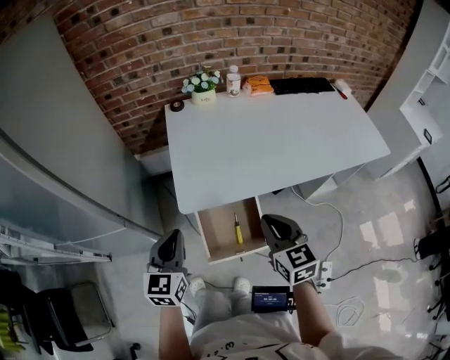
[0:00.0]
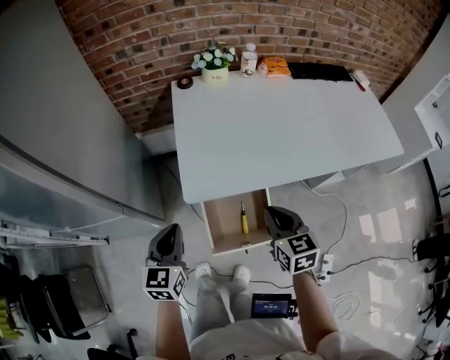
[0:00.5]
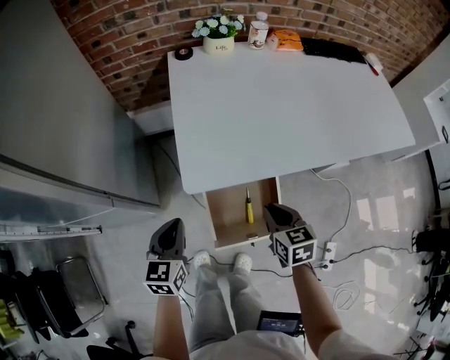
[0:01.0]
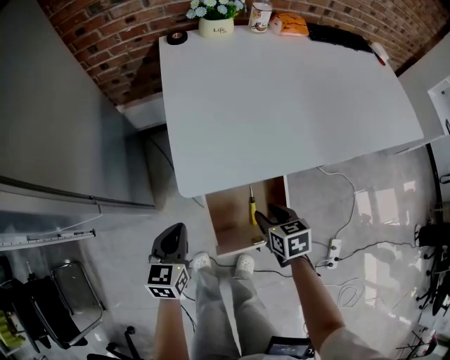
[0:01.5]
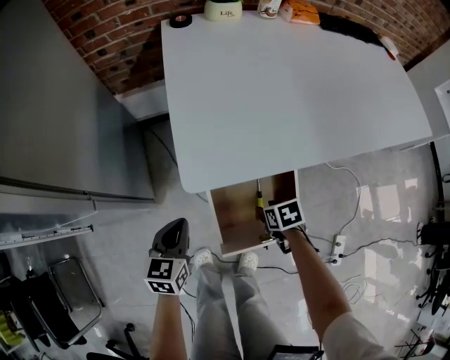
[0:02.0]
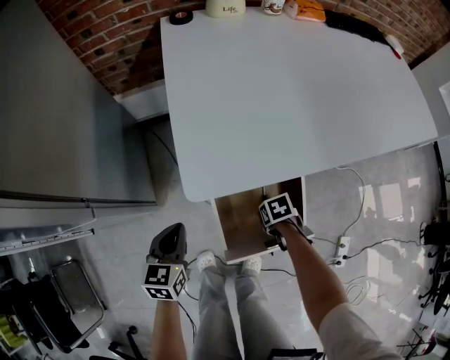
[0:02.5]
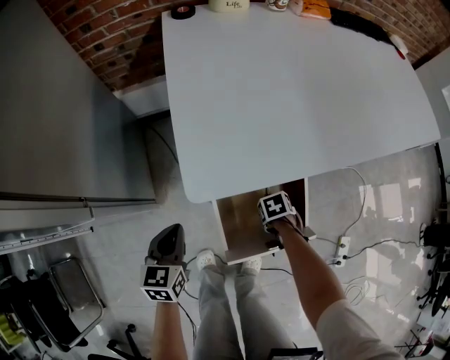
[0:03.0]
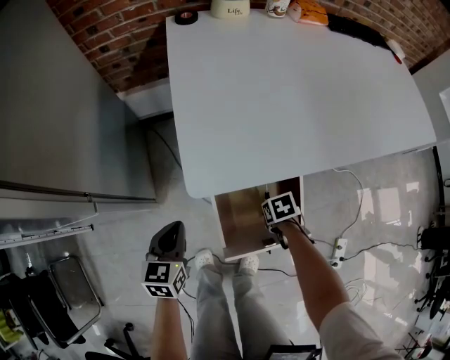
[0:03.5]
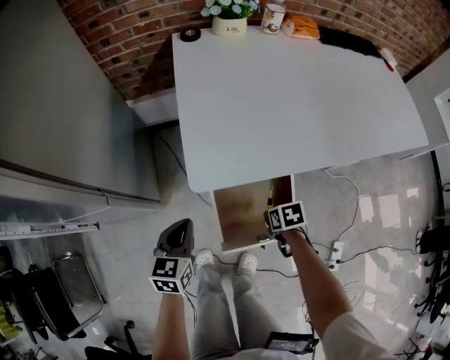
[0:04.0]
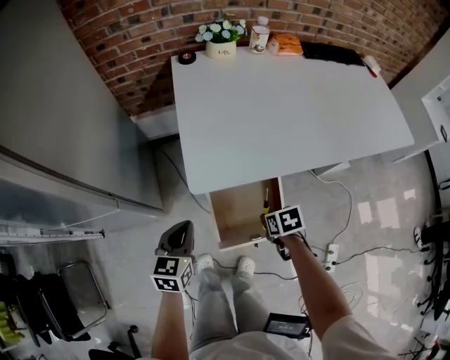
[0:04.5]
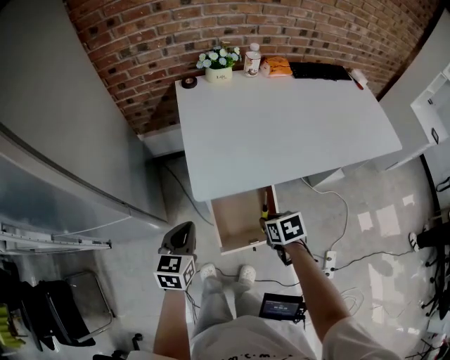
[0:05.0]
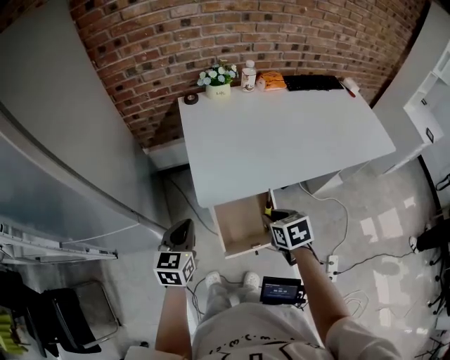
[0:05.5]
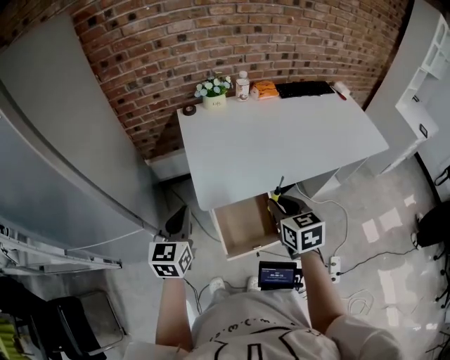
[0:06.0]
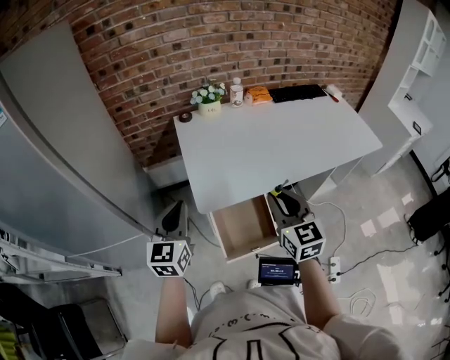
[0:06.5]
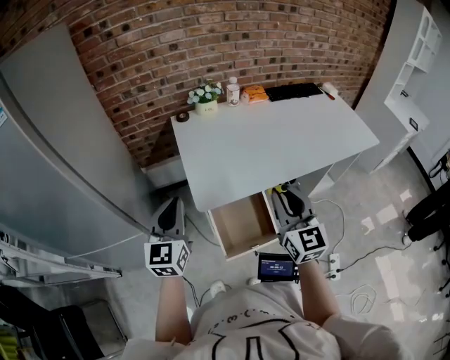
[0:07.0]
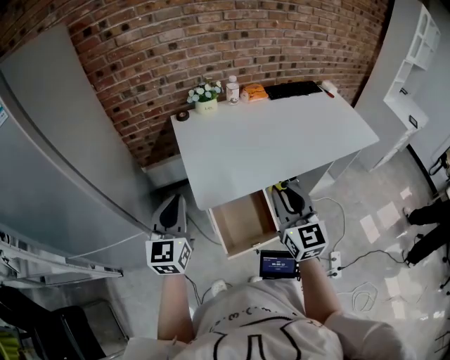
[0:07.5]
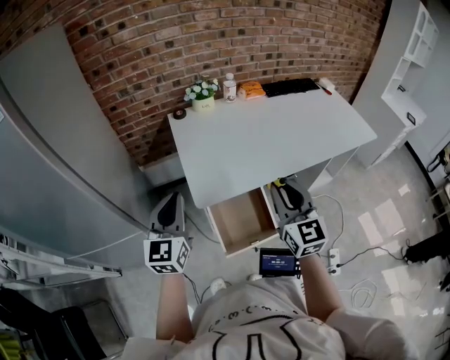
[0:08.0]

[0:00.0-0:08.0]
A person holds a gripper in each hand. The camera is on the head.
0:00.0 to 0:02.0: Both grippers travel together downward, some 35 cm. The left gripper swivels approximately 20 degrees; the right gripper tilts its fingers approximately 50 degrees downward, and opens up.
0:02.0 to 0:04.0: The left gripper changes place by approximately 5 cm. The right gripper reaches about 10 cm downward, then returns.
0:04.0 to 0:06.0: Both grippers move upward, approximately 35 cm. The left gripper changes its angle by some 20 degrees, while the right gripper points its fingers some 40 degrees further upward.
0:06.0 to 0:08.0: The two grippers go approximately 10 cm upward. The right gripper changes its angle by about 30 degrees.

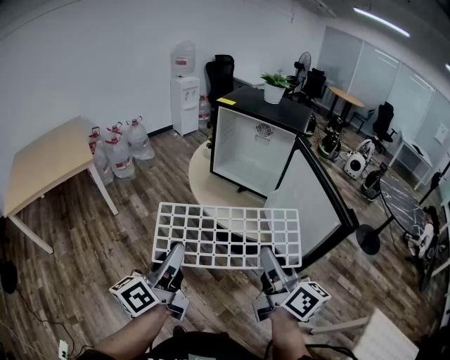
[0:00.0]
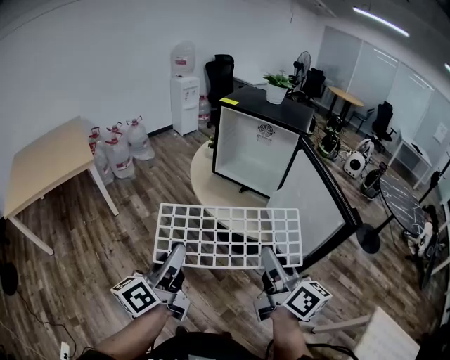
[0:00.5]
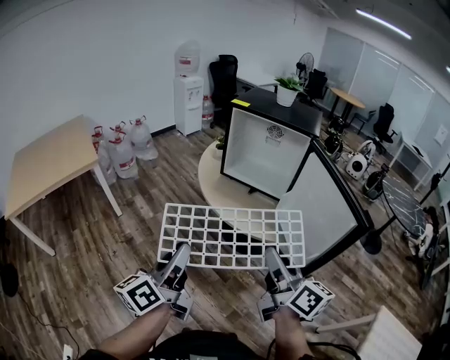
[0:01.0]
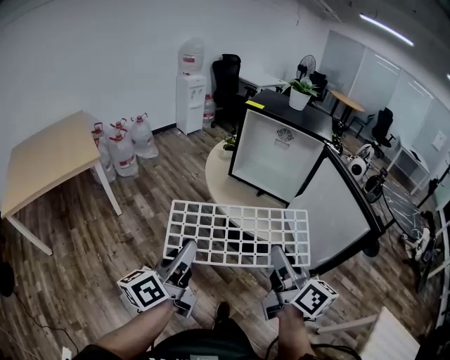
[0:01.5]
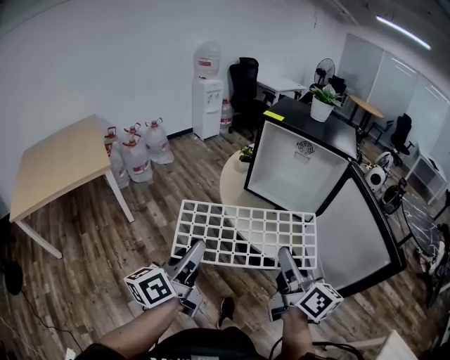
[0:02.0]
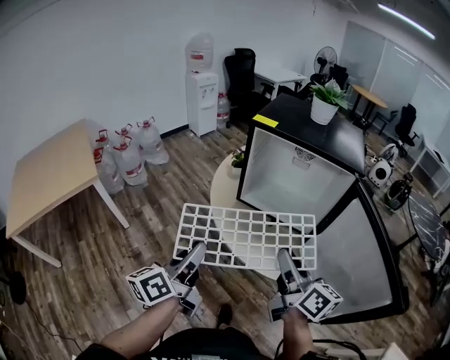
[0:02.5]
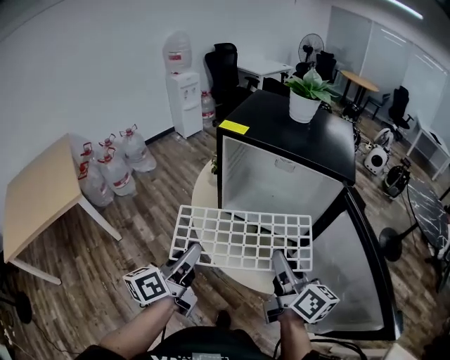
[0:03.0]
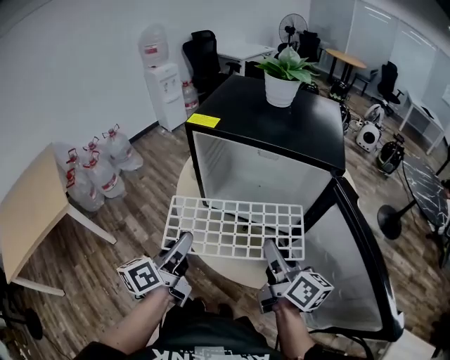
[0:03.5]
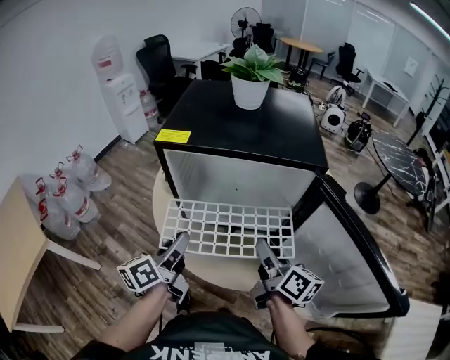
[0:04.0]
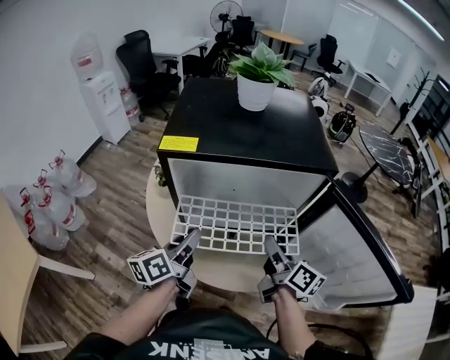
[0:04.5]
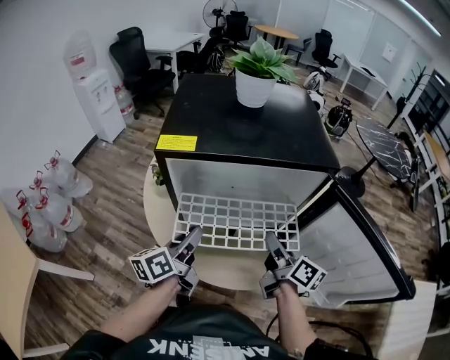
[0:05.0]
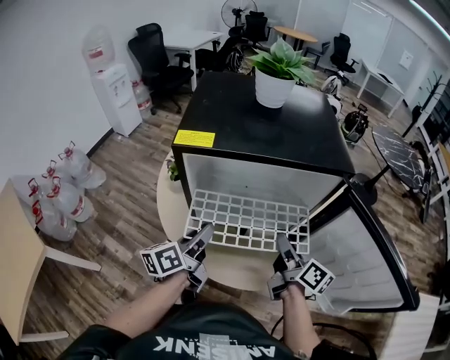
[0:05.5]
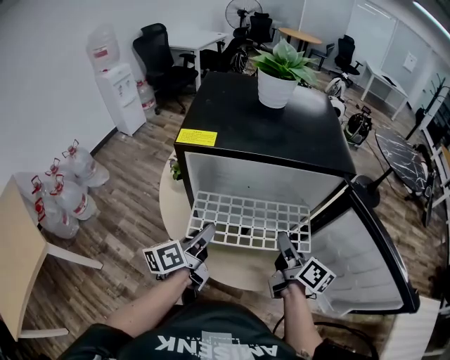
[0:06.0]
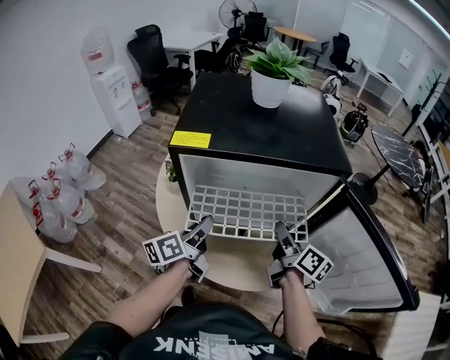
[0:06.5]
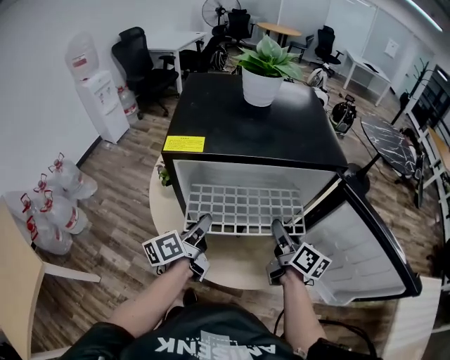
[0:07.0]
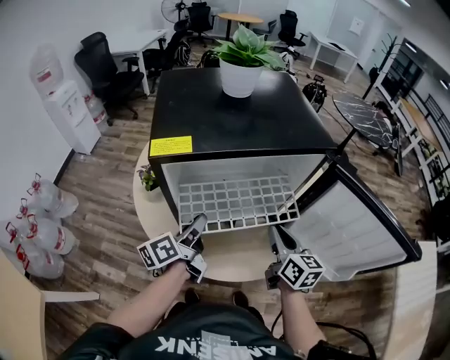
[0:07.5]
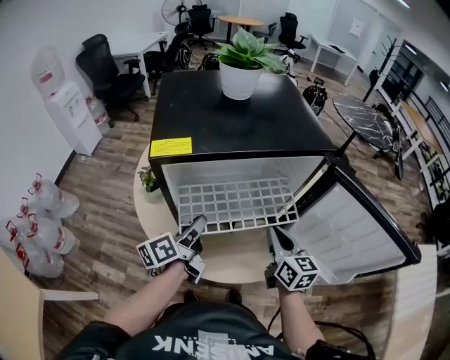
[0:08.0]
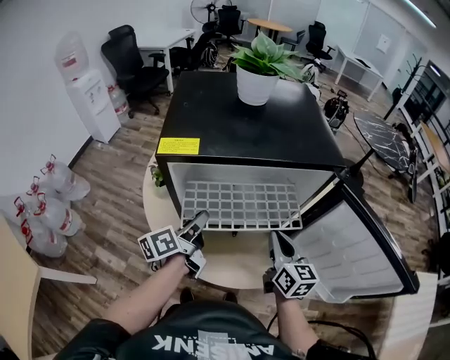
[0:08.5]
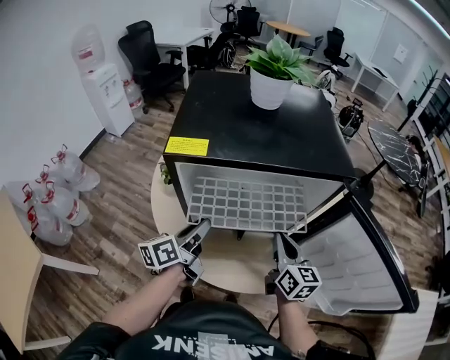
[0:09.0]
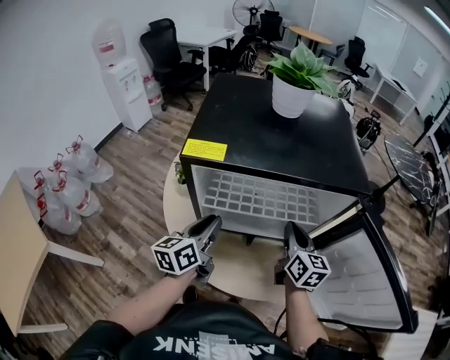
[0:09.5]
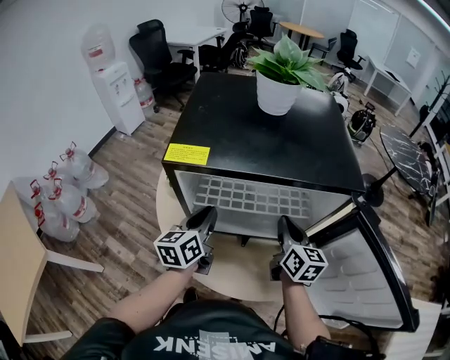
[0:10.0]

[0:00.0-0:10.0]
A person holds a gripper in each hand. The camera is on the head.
0:00.0 to 0:02.0: The two grippers go approximately 15 cm forward and to the left.
0:02.0 to 0:04.0: The left gripper moves forward, some 35 cm, and swivels approximately 20 degrees. Meanwhile the right gripper goes about 30 cm forward and to the right, and swivels some 20 degrees.
0:04.0 to 0:06.0: The right gripper changes place by roughly 5 cm; the left gripper moves forward, some 5 cm.
0:06.0 to 0:08.0: The right gripper changes its angle by roughly 30 degrees.
0:08.0 to 0:10.0: The right gripper goes about 10 cm forward, while the left gripper shifts some 5 cm forward, and turns by about 40 degrees.

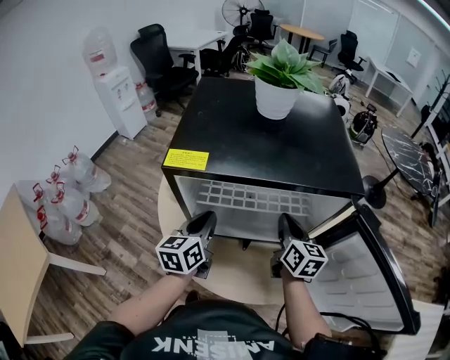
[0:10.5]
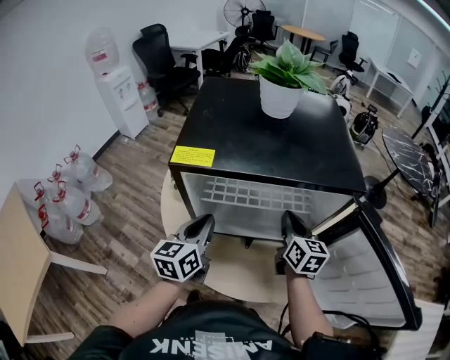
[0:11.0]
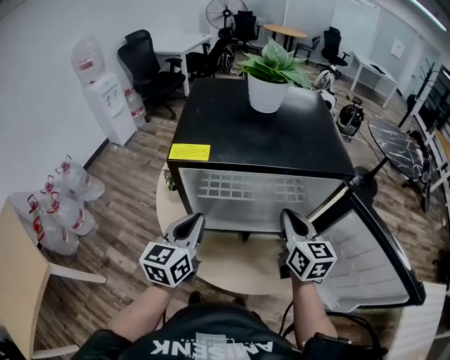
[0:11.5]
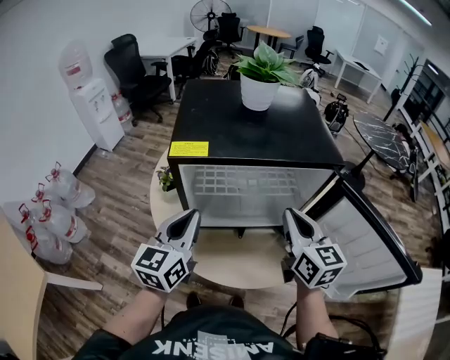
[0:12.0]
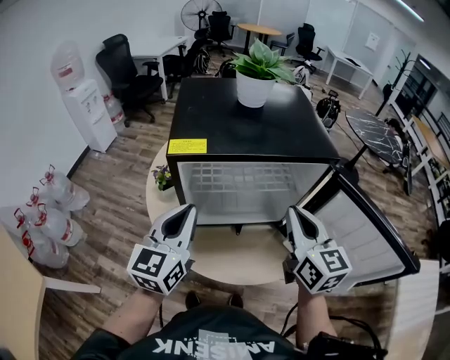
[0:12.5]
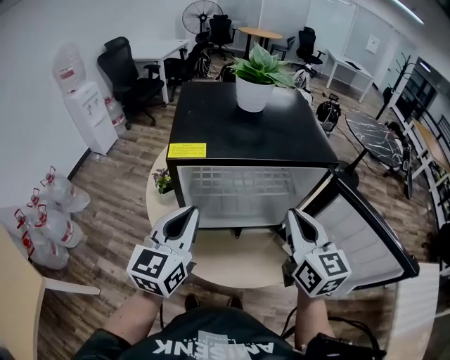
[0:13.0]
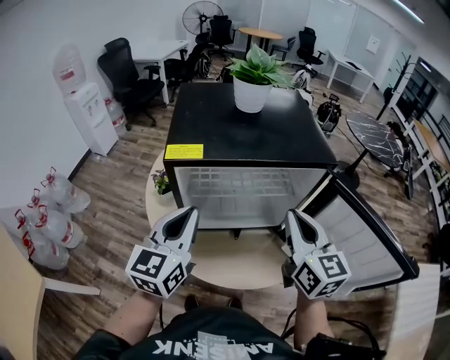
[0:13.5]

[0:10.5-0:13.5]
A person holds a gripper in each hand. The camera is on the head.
0:10.5 to 0:12.0: The two grippers go some 15 cm upward and backward.
0:12.0 to 0:13.5: The right gripper moves about 5 cm.

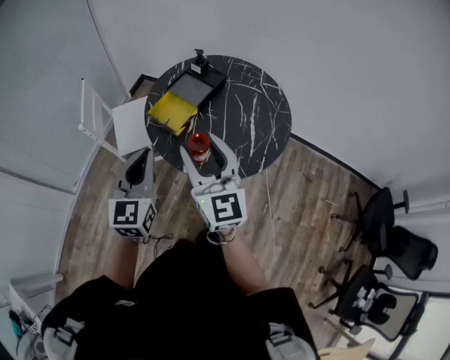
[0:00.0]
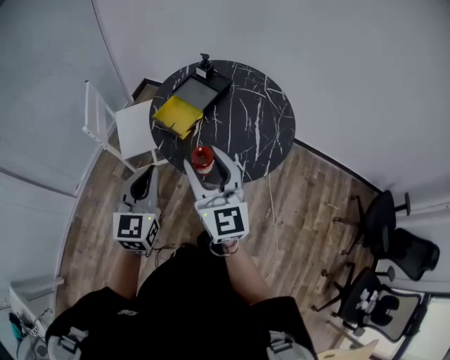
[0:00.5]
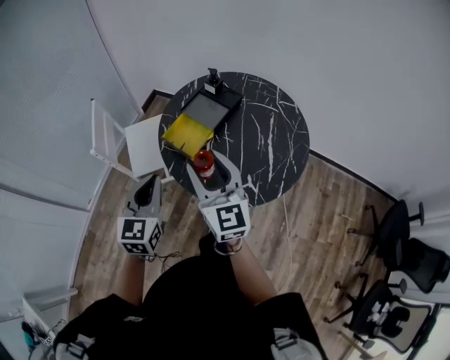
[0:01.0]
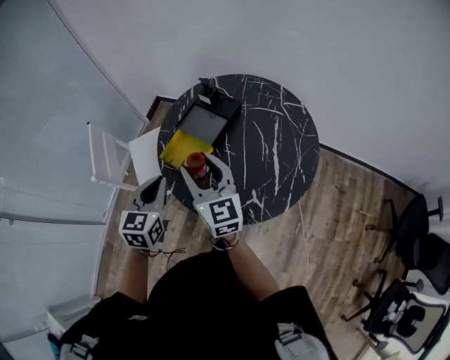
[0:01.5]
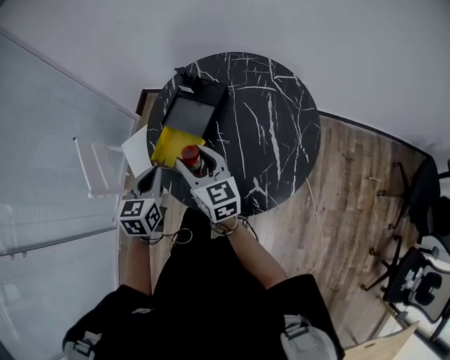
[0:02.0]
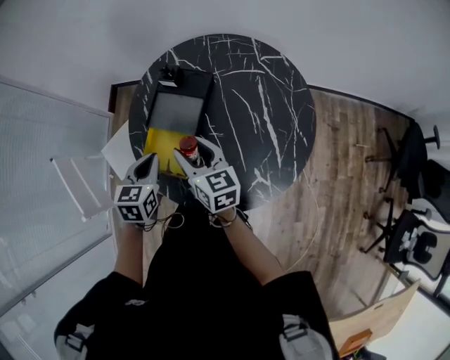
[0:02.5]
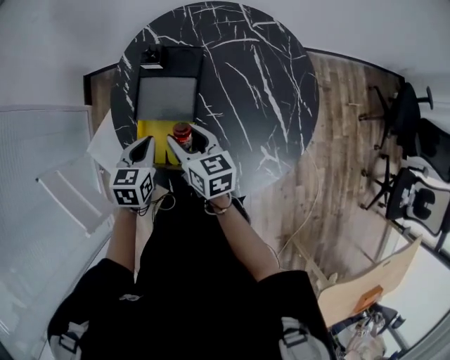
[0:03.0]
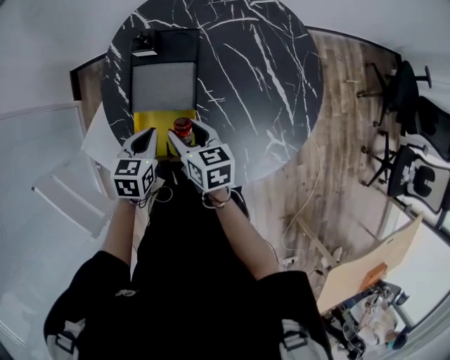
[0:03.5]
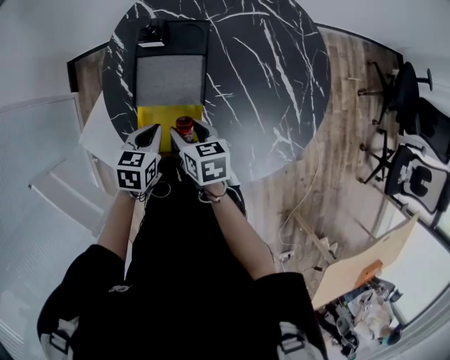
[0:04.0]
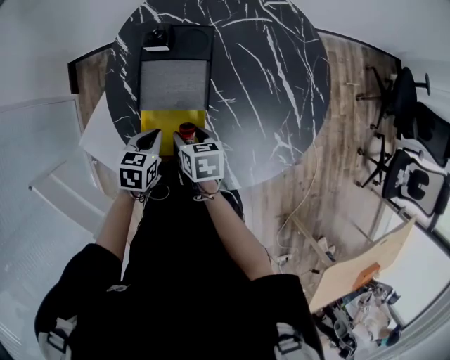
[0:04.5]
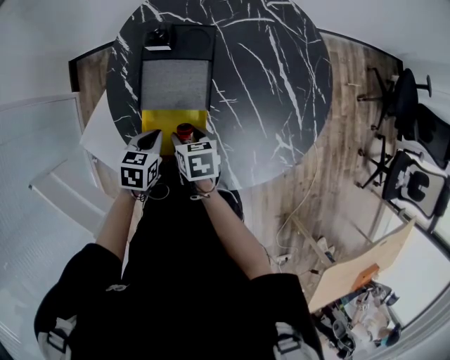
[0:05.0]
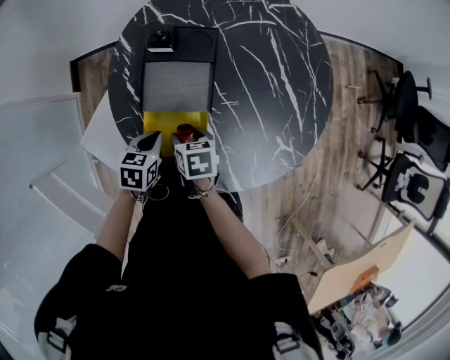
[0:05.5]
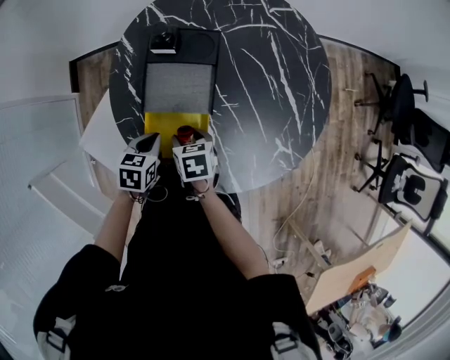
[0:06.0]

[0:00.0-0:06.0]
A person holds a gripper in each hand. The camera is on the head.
0:00.0 to 0:02.0: The grippers both shift forward and downward by about 30 cm. The left gripper swivels approximately 30 degrees, while the right gripper rotates roughly 30 degrees.
0:02.0 to 0:04.0: The grippers both shift downward by some 25 cm. The right gripper points its fingers roughly 40 degrees further downward; the left gripper swivels approximately 40 degrees.
0:04.0 to 0:06.0: The right gripper shifts by about 5 cm.
